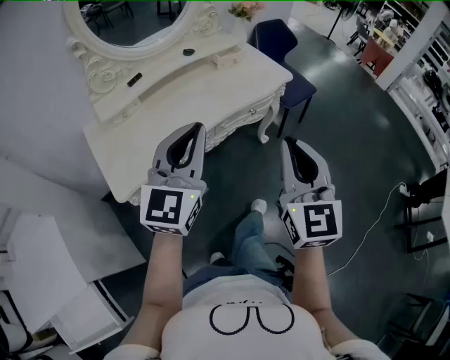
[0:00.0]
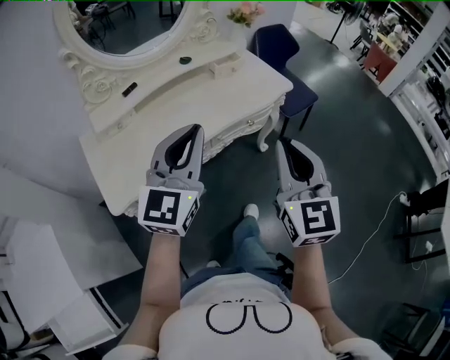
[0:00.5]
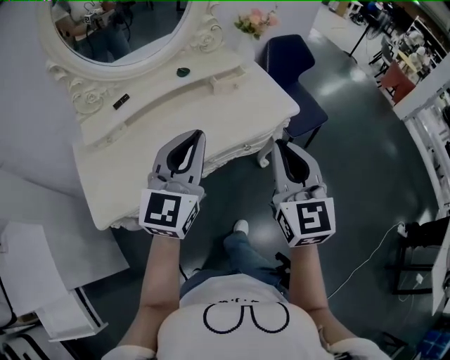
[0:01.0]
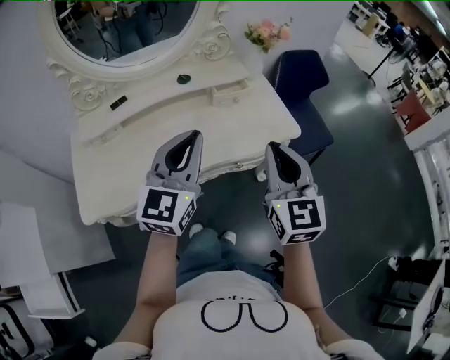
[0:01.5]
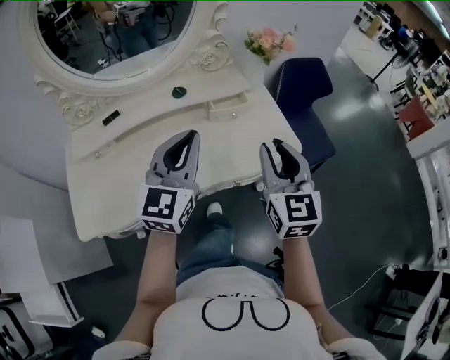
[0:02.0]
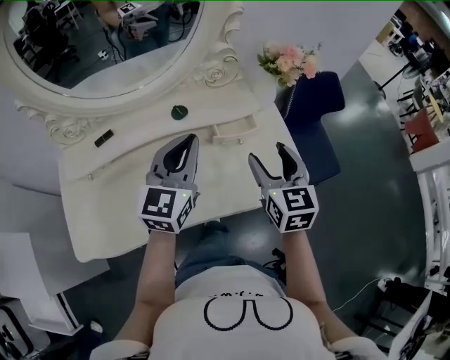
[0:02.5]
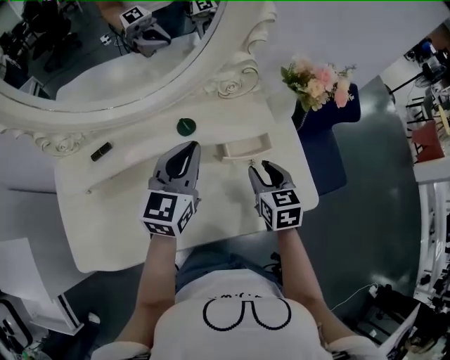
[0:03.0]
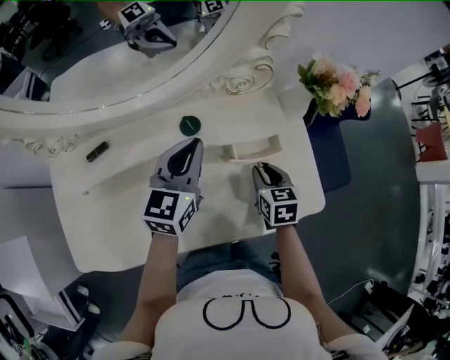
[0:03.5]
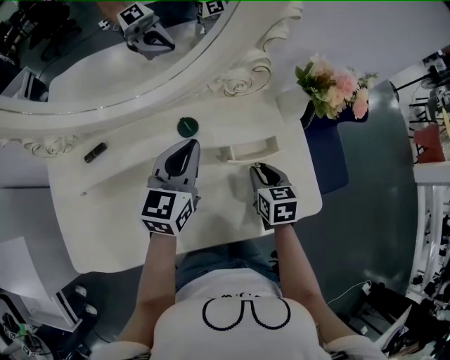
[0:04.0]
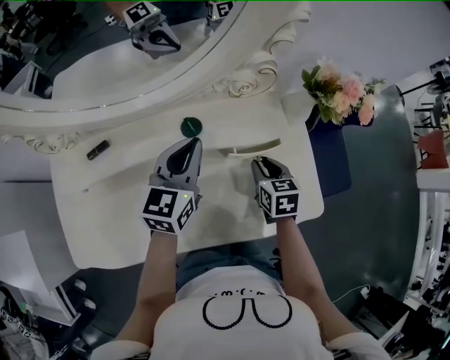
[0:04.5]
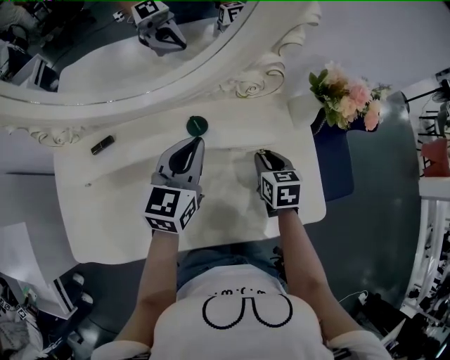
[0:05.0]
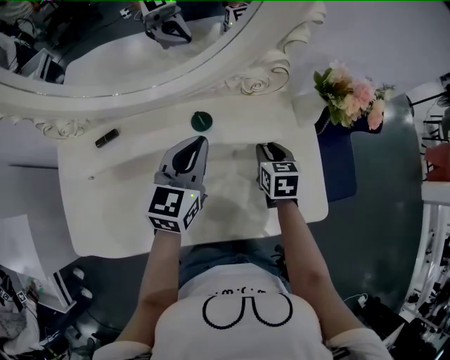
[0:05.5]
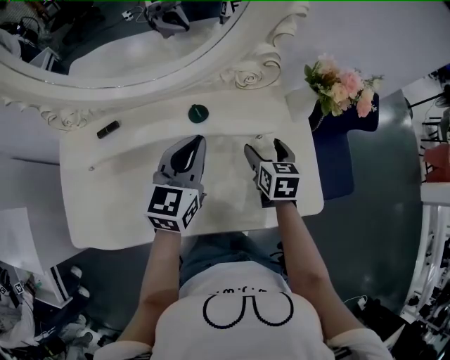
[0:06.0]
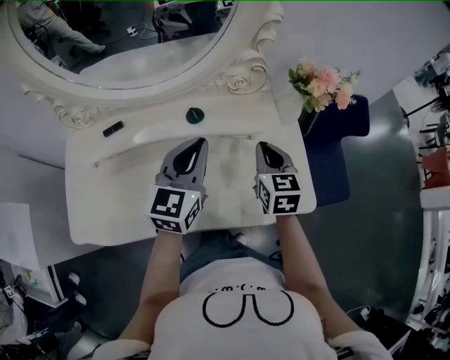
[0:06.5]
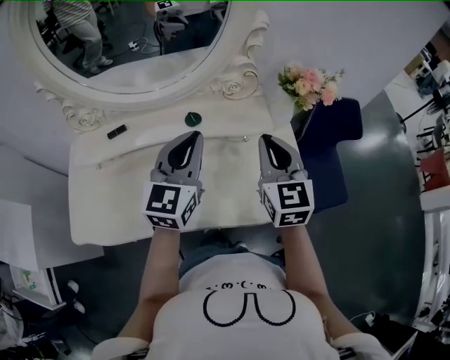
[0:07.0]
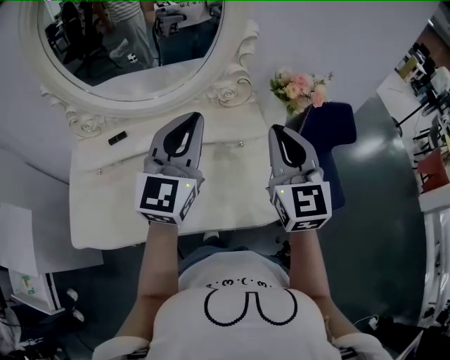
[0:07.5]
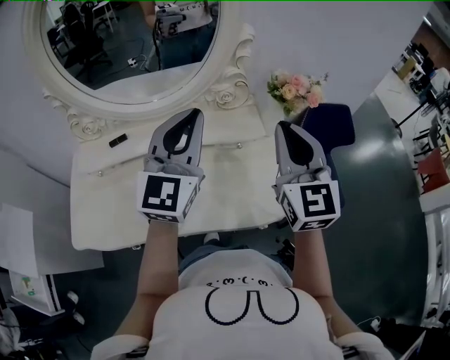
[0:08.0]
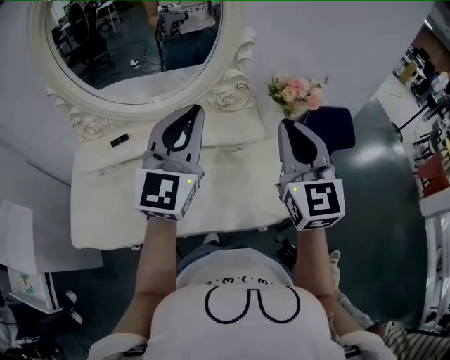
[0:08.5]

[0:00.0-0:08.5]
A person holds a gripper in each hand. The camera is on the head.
0:00.0 to 0:02.0: Both grippers move forward, about 35 cm. The right gripper changes its angle by approximately 20 degrees.
0:02.0 to 0:04.0: The left gripper heads forward and downward, covering approximately 30 cm, and swivels about 20 degrees, while the right gripper travels downward and forward by about 35 cm, tips its fingers downward by roughly 40 degrees, and opens, then closes once more.
0:04.0 to 0:06.5: The left gripper goes about 10 cm backward and upward, while the right gripper travels upward by about 10 cm, and opens and closes again.
0:06.5 to 0:08.5: Both grippers travel together upward, about 20 cm. The right gripper swivels some 30 degrees; the left gripper changes its angle by approximately 30 degrees.

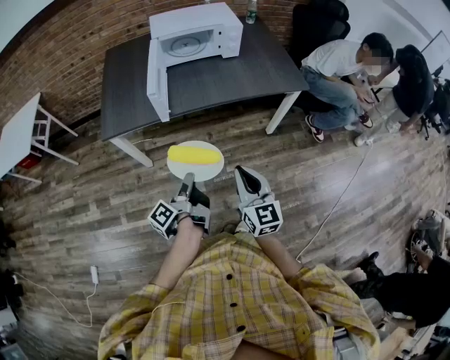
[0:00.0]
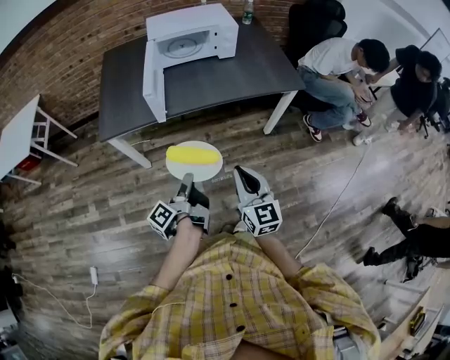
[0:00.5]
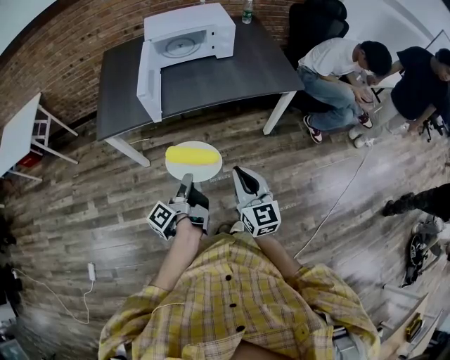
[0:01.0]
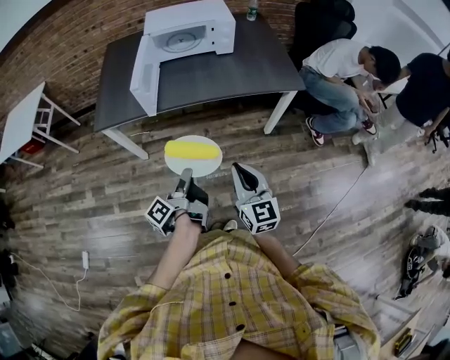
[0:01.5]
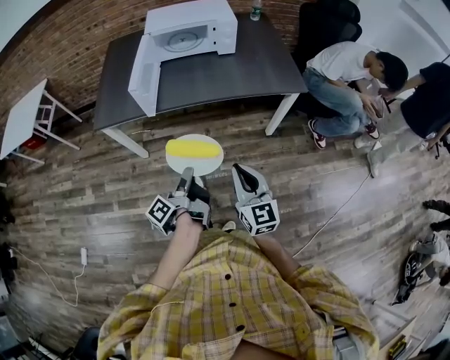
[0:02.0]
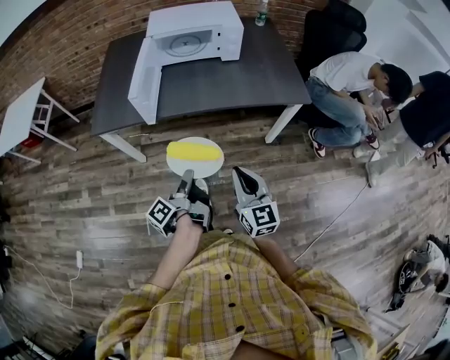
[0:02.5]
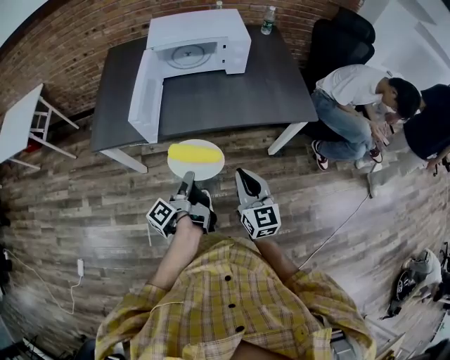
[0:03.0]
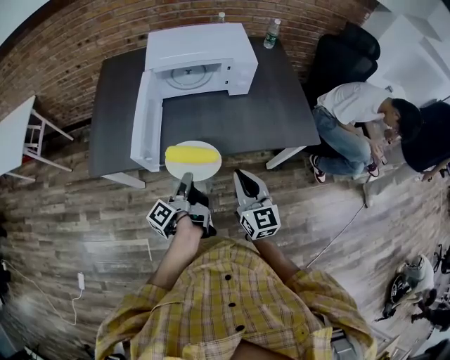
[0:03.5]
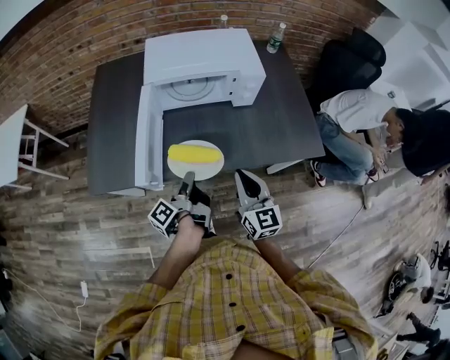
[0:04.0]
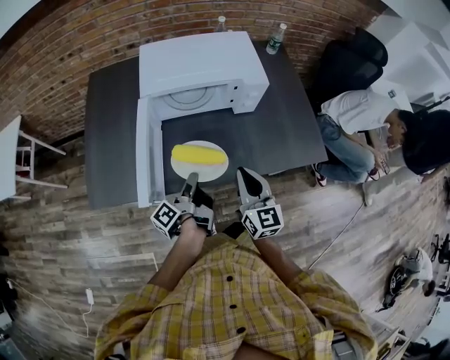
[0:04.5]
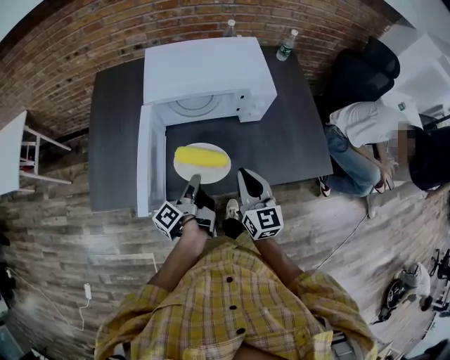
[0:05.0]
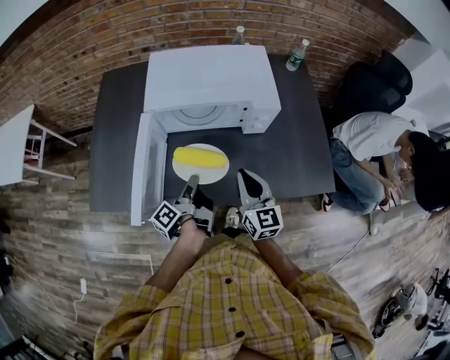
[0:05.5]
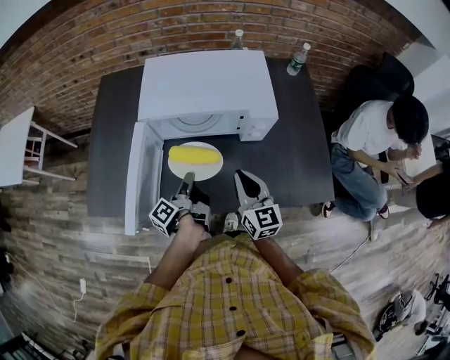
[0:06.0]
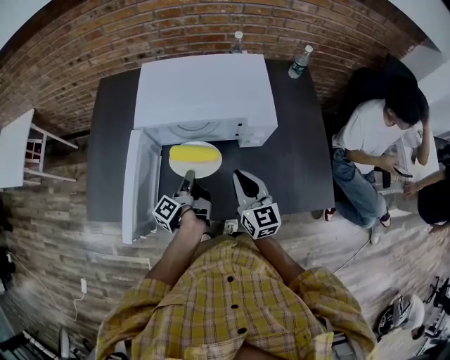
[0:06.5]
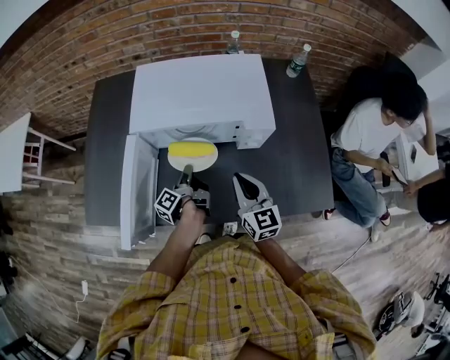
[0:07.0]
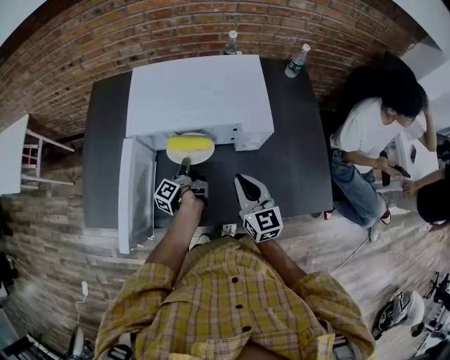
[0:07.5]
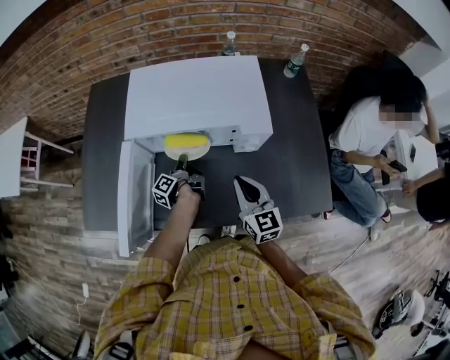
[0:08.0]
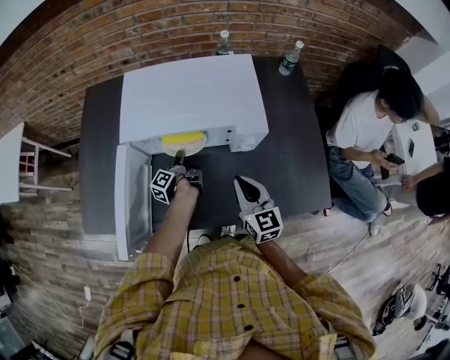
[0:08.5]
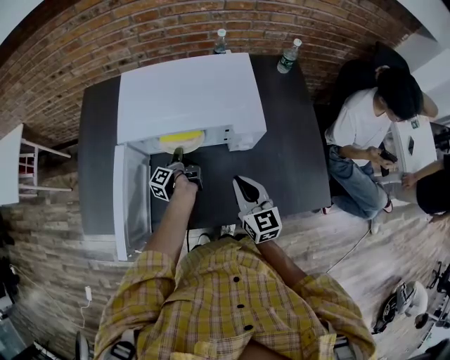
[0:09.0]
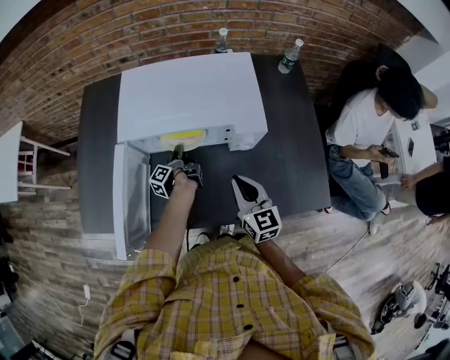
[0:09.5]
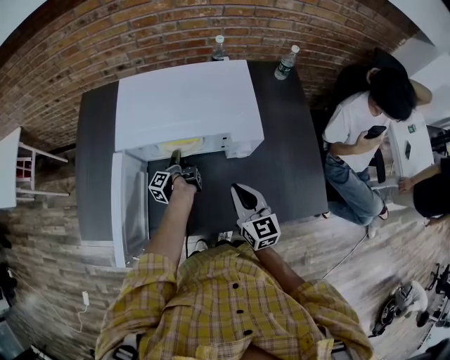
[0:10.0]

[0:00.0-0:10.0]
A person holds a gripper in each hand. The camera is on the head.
0:00.0 to 0:02.0: The right gripper shifts by roughly 10 cm.
0:02.0 to 0:04.0: The right gripper ends up some 35 cm from where it was.
0:04.0 to 0:06.0: The right gripper ends up approximately 20 cm from where it was.
0:06.0 to 0:08.0: The right gripper moves approximately 5 cm.

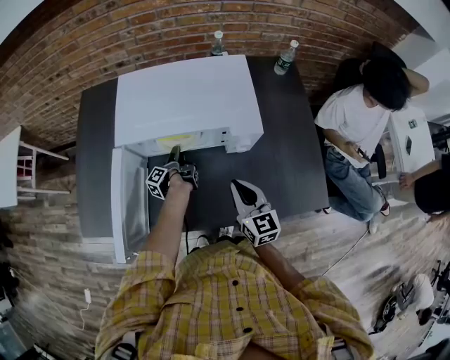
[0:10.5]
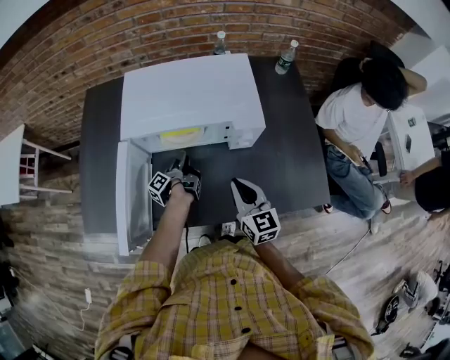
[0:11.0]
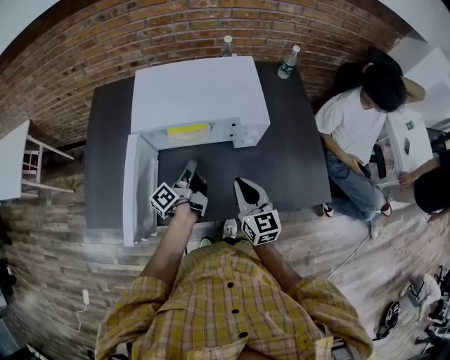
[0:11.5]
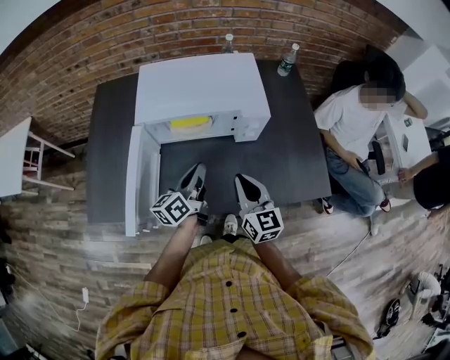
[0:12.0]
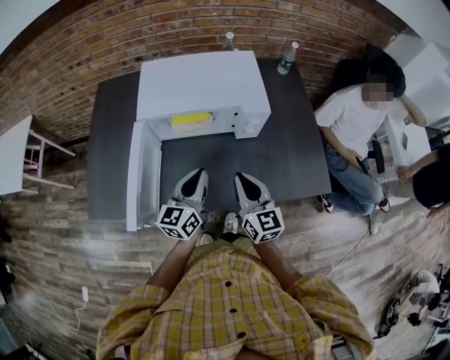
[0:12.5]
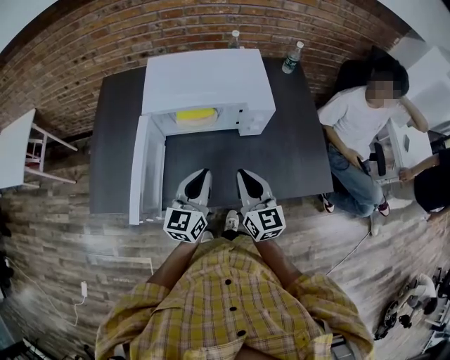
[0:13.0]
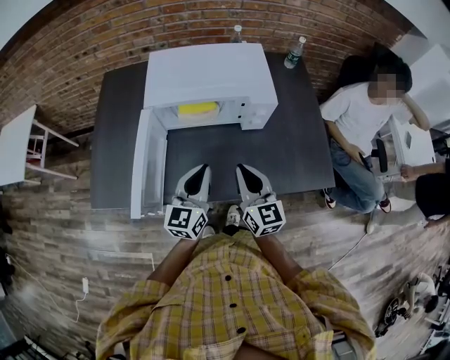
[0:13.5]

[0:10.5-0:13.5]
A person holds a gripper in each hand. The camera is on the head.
0:10.5 to 0:12.0: The right gripper ends up about 10 cm from where it was.

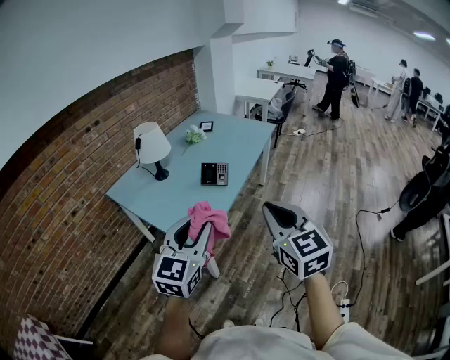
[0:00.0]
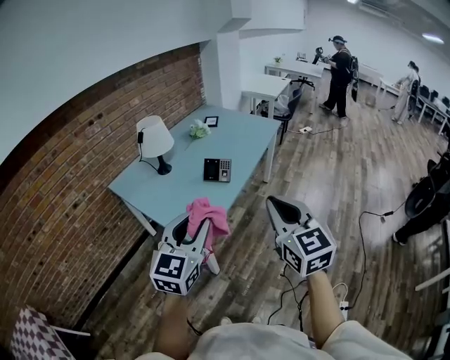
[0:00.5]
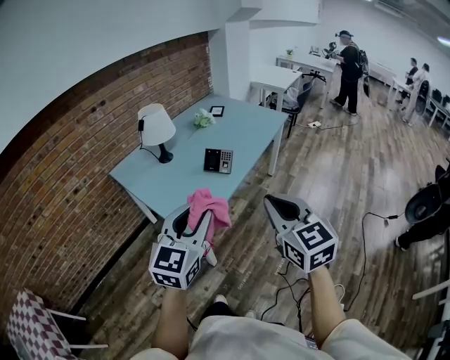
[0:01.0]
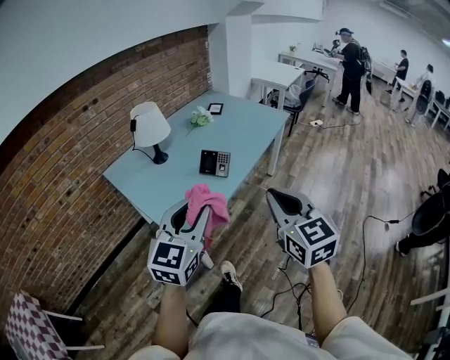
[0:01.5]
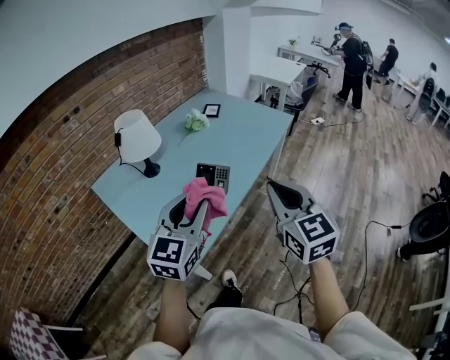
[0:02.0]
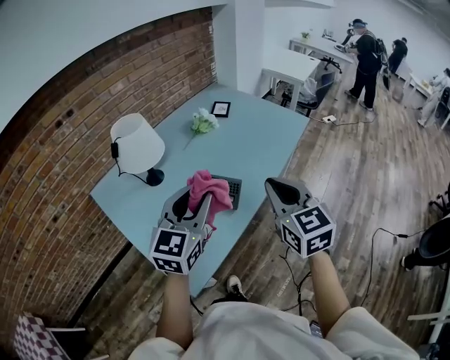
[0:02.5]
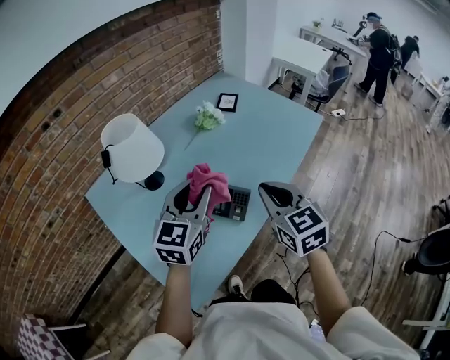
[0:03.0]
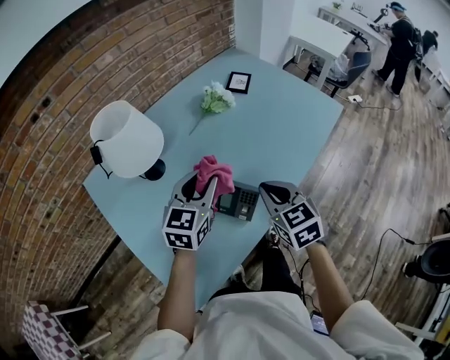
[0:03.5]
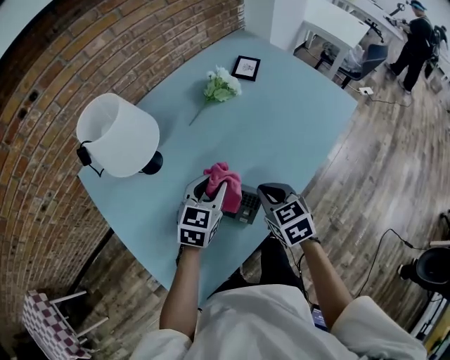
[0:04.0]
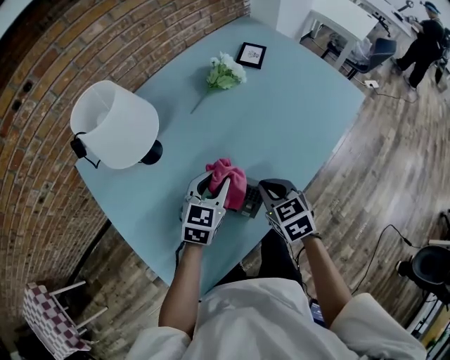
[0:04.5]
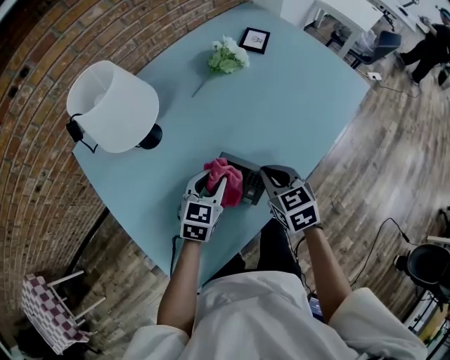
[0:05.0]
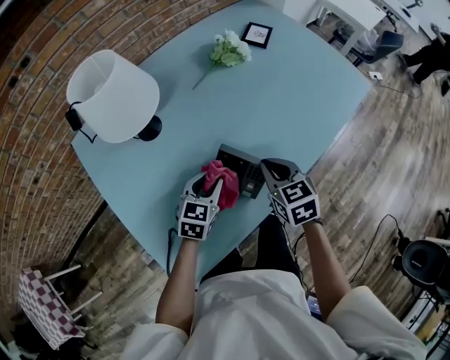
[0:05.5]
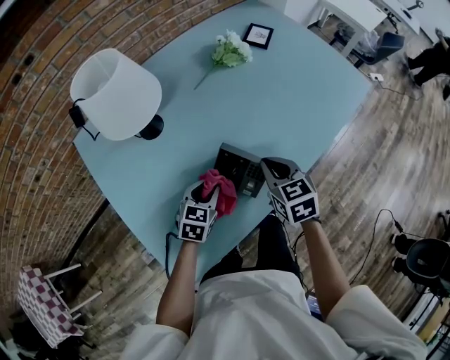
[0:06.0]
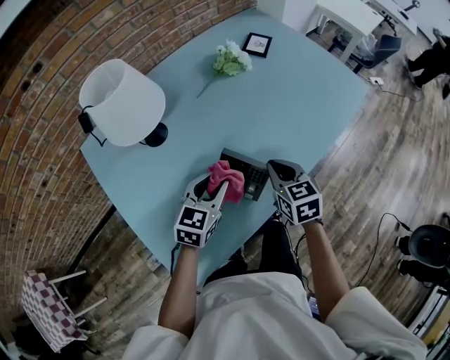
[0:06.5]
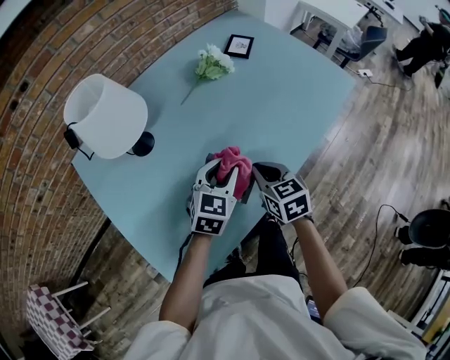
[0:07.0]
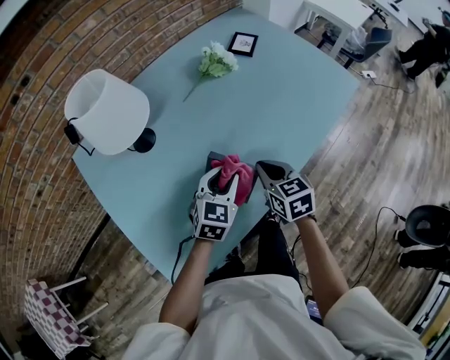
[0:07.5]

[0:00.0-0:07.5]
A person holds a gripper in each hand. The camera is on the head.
0:00.0 to 0:02.0: Both grippers travel together forward, approximately 25 cm.
0:02.0 to 0:04.0: The two grippers go some 40 cm forward and downward. The left gripper changes its angle by some 20 degrees, while the right gripper angles its fingers downward, by some 30 degrees.
0:04.0 to 0:05.5: The left gripper travels downward and backward by about 10 cm.
0:05.5 to 0:07.5: The left gripper goes some 10 cm to the right and upward.
